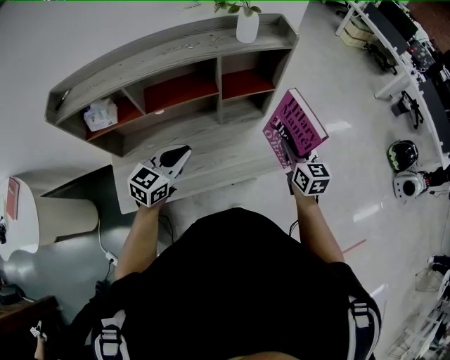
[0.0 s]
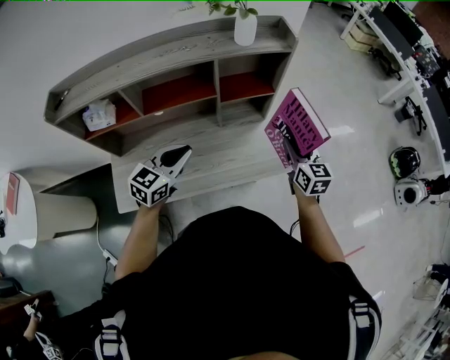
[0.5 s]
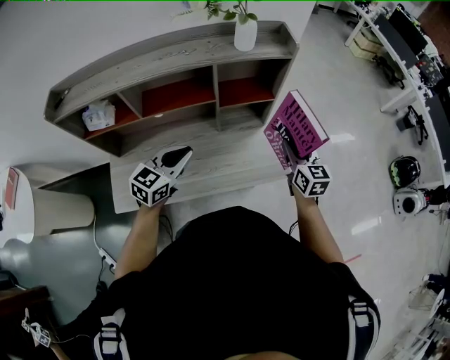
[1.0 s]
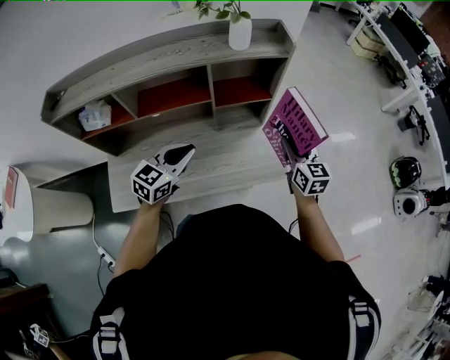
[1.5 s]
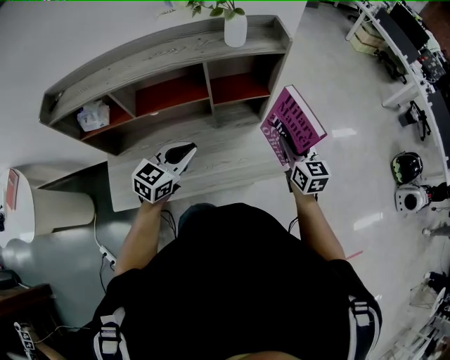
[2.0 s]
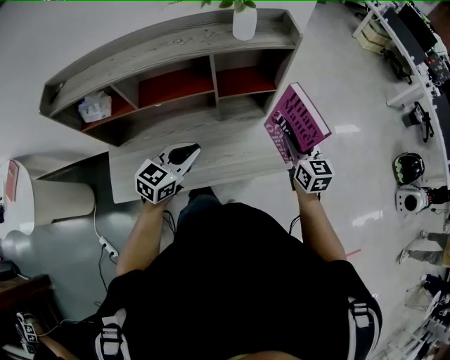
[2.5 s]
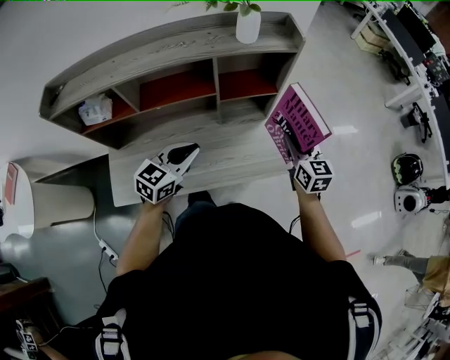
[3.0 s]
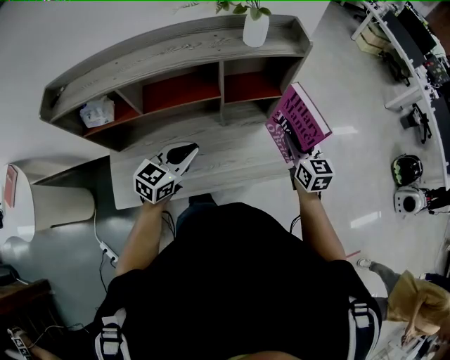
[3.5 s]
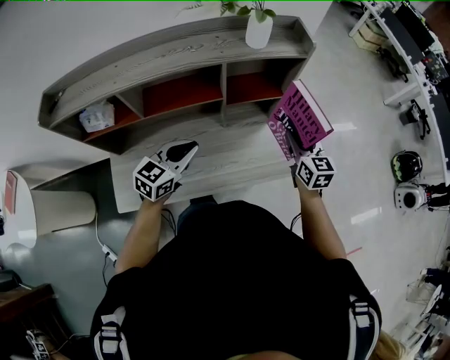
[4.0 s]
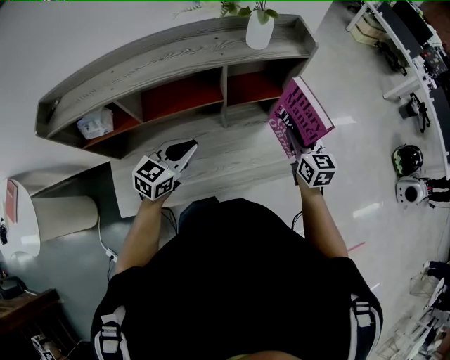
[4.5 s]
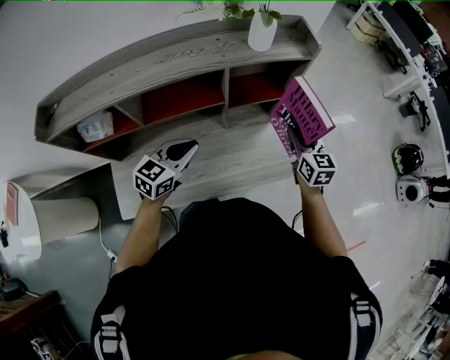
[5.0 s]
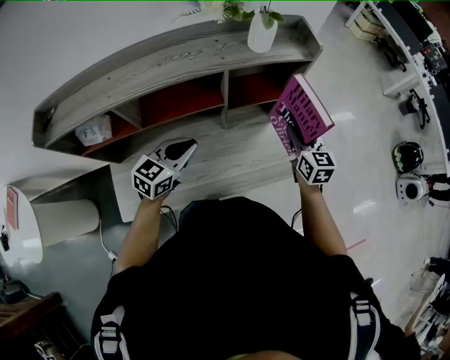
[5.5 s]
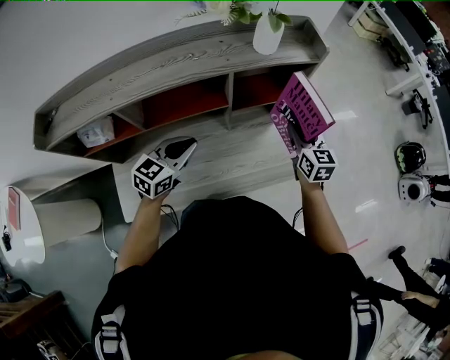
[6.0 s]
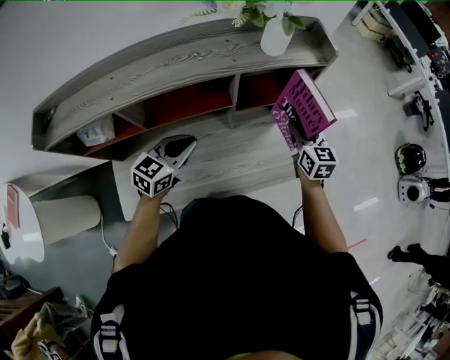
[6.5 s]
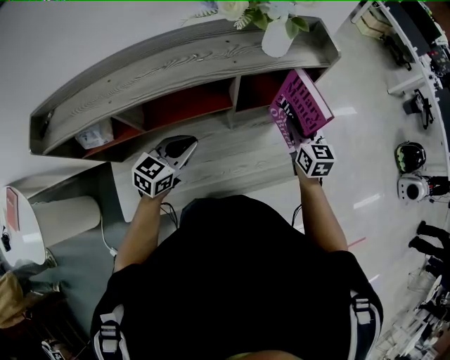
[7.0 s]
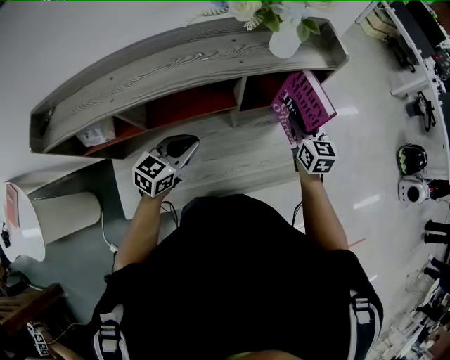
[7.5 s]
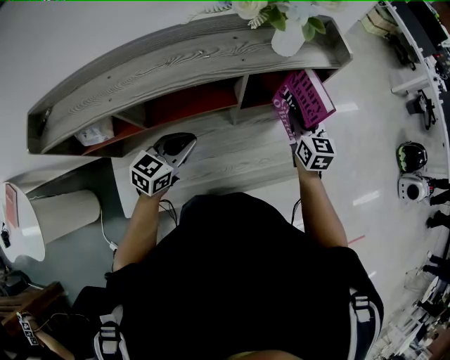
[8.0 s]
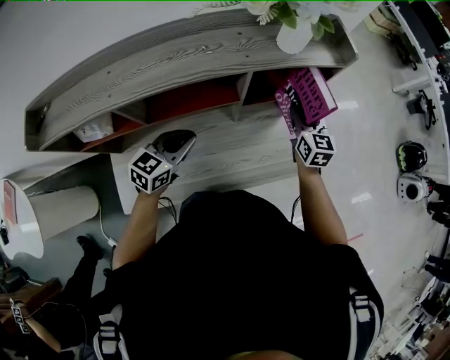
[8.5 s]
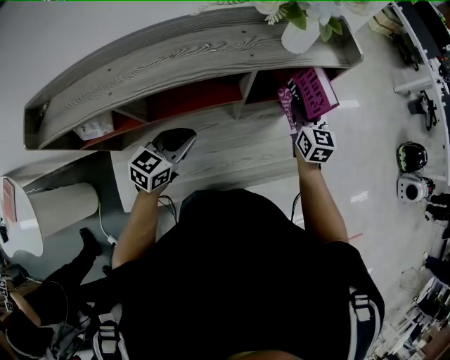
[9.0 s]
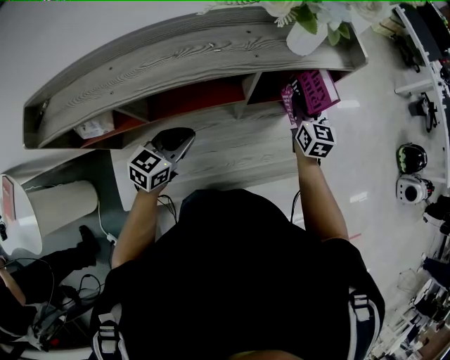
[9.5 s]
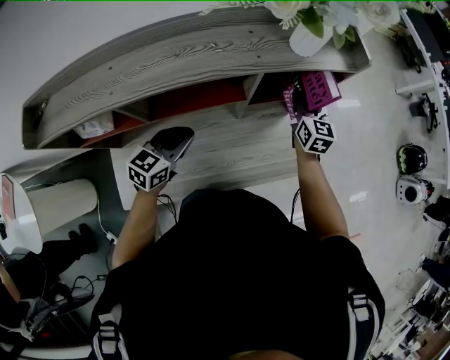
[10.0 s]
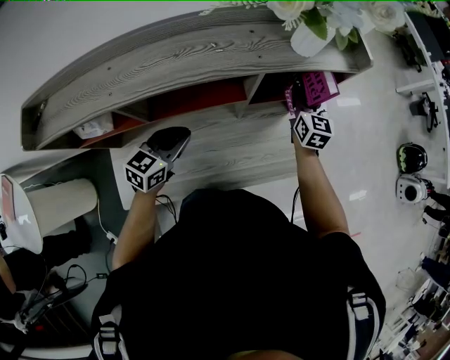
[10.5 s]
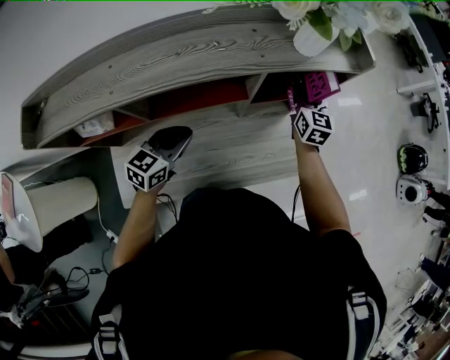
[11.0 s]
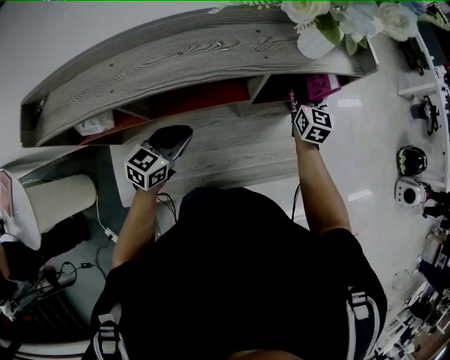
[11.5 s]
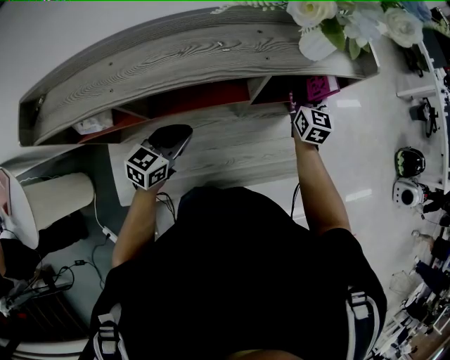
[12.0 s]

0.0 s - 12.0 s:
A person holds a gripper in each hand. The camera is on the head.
0.0 s - 2.0 s: The right gripper heads forward, covering some 5 cm; the left gripper moves to the right, roughly 5 cm.
2.0 s - 4.0 s: The left gripper is displaced to the left by roughly 5 cm.
4.0 s - 6.0 s: The right gripper shifts about 5 cm forward. The left gripper shifts by about 5 cm.
6.0 s - 8.0 s: The right gripper travels forward by approximately 5 cm.
8.0 s - 10.0 s: The right gripper moves forward, some 5 cm.
10.0 s - 12.0 s: The grippers move only a little.

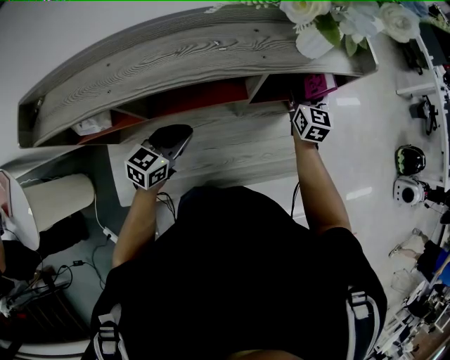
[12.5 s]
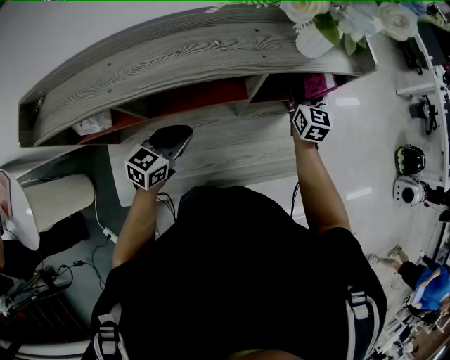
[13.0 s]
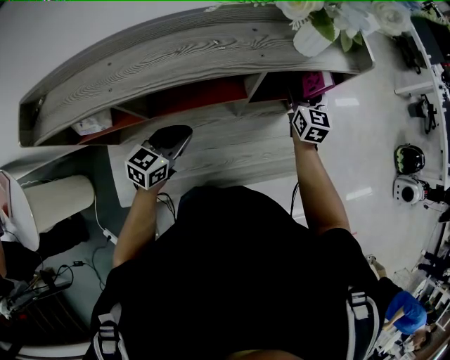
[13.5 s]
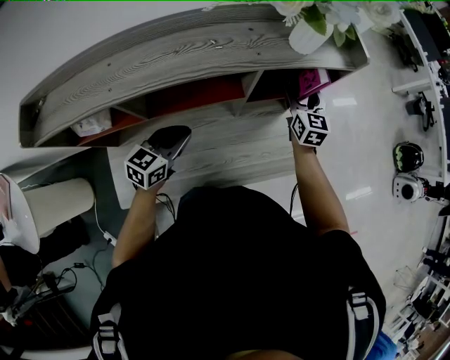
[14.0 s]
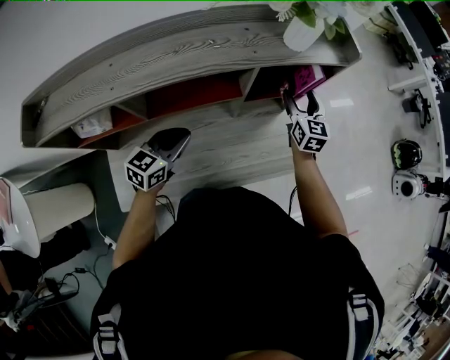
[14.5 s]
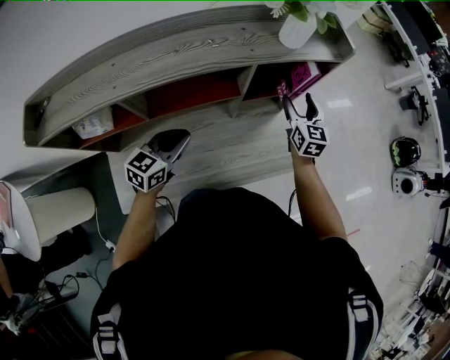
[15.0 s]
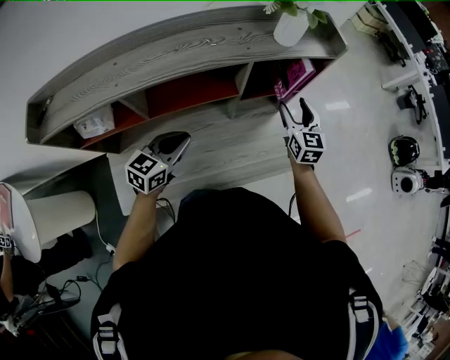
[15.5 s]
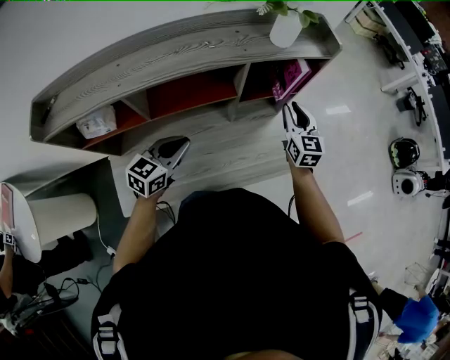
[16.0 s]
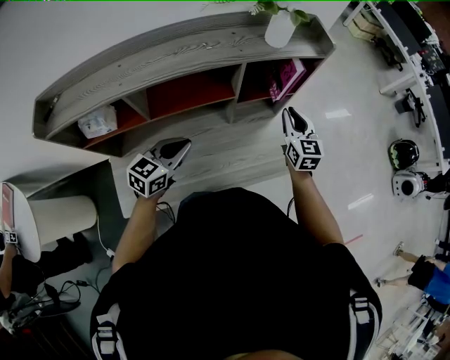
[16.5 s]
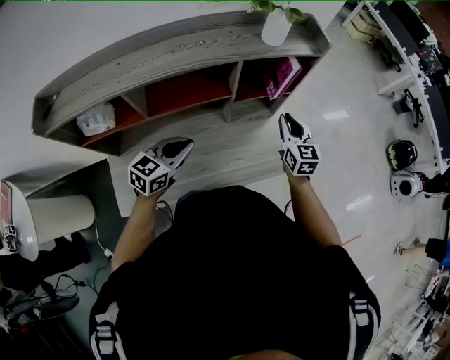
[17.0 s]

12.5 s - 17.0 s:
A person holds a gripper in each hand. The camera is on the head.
12.5 s - 14.5 s: The right gripper is displaced backward by approximately 5 cm.
14.5 s - 17.0 s: The right gripper travels backward by roughly 10 cm, and closes, while the left gripper moves roughly 5 cm.

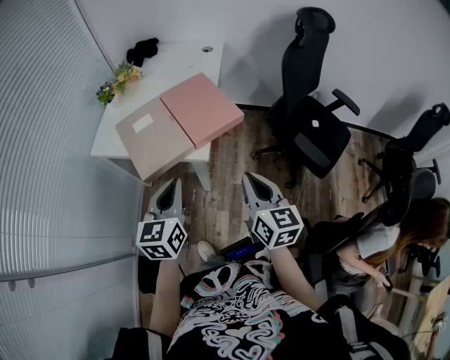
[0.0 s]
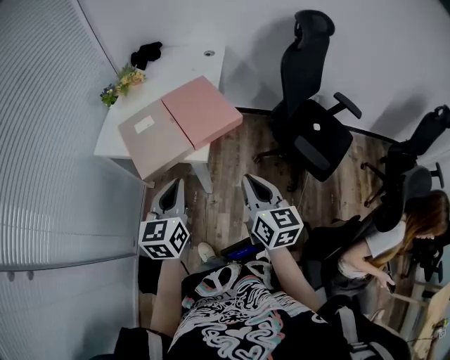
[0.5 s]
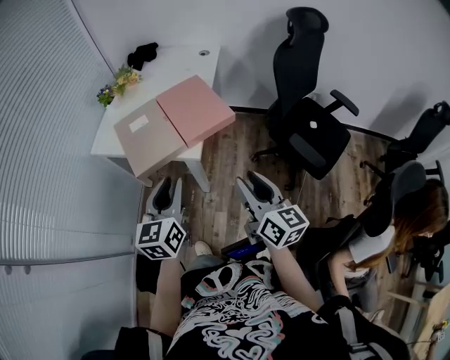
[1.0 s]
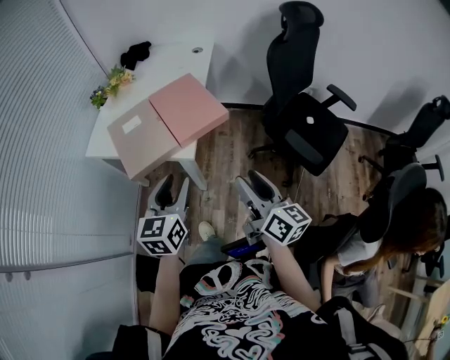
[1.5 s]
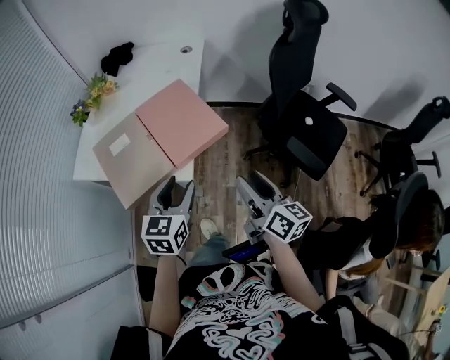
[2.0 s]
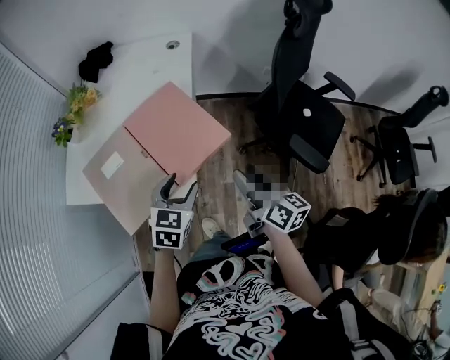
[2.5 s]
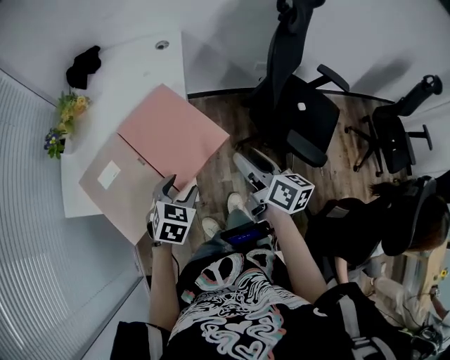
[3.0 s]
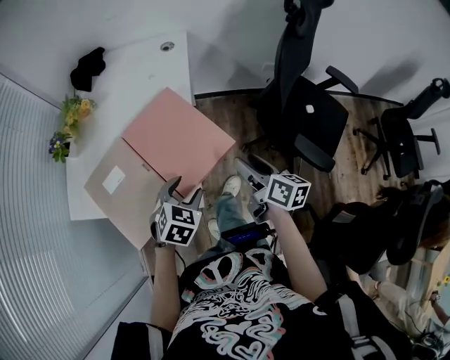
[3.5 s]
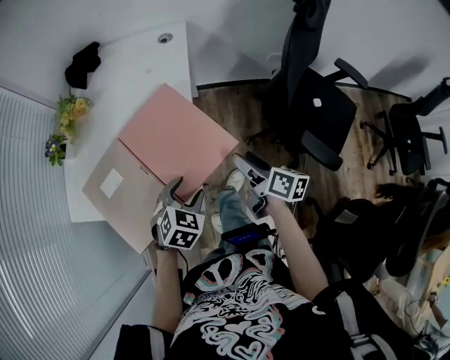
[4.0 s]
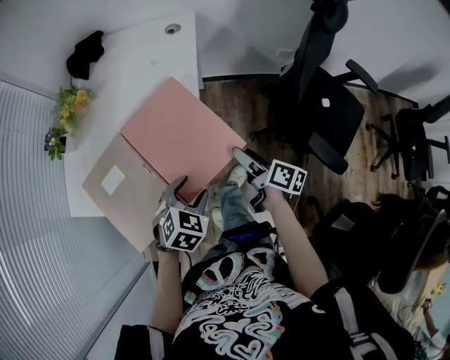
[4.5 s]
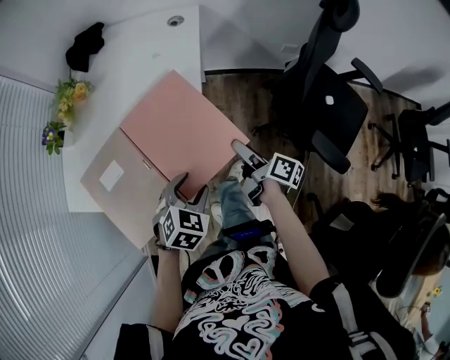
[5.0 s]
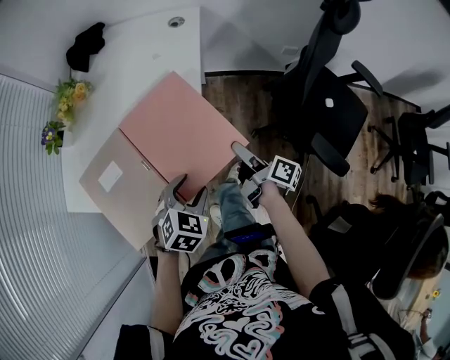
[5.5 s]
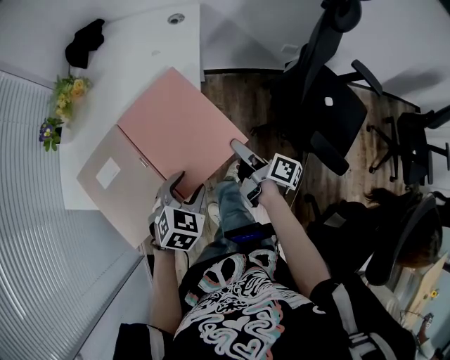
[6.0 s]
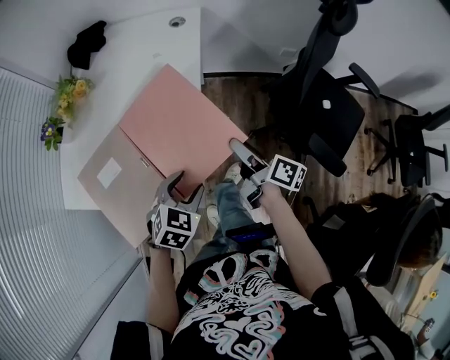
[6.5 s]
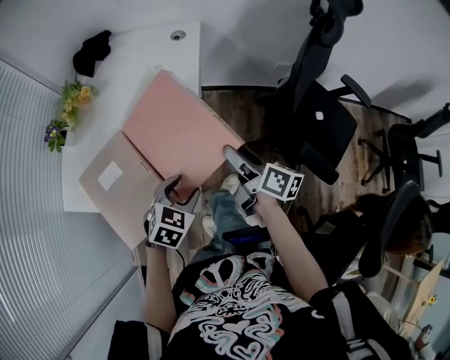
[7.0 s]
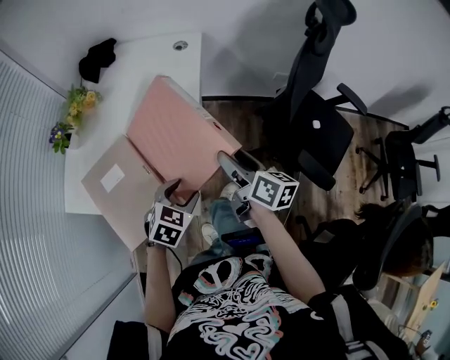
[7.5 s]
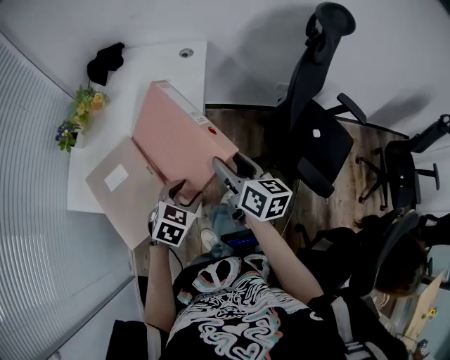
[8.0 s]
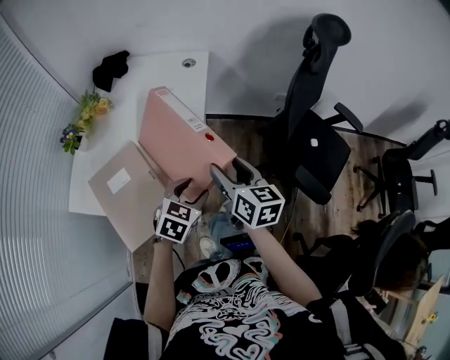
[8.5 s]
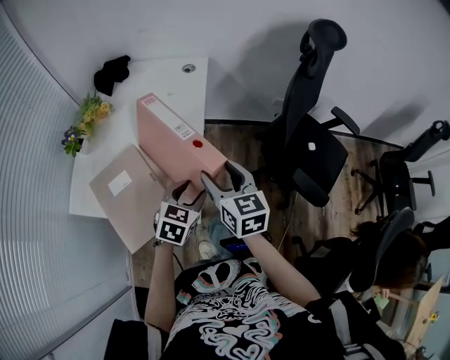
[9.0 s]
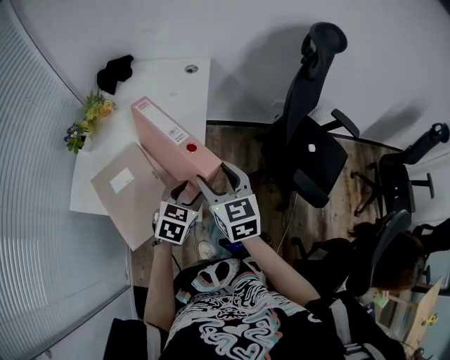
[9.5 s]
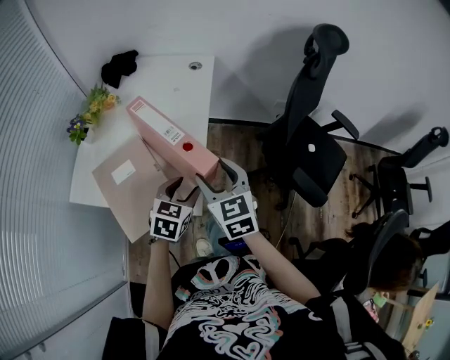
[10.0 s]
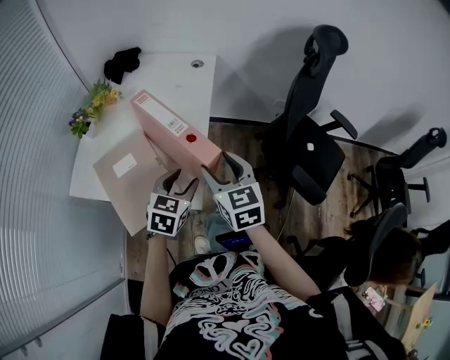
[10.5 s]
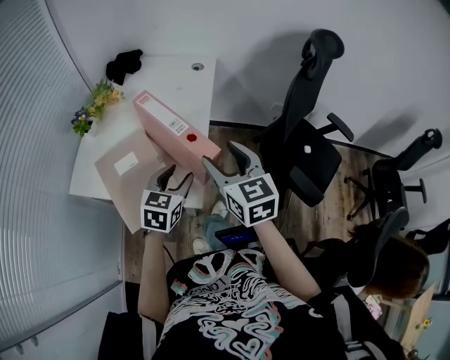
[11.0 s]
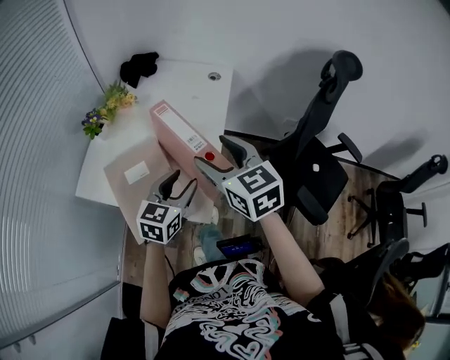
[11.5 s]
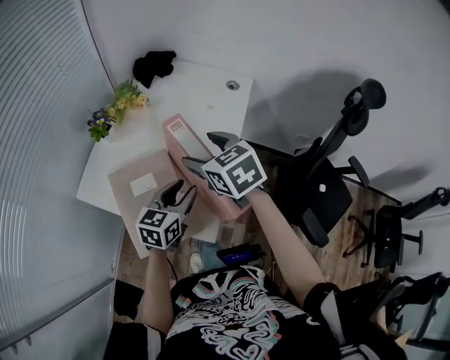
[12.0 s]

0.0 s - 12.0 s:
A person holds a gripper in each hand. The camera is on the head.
0.0 s - 2.0 s: The right gripper shifts some 10 cm to the right and forward, turns by about 30 degrees, and opens. Meanwhile the left gripper moves forward, to the right and downward, about 15 cm, and opens.
2.0 s - 4.0 s: The left gripper shifts about 20 cm downward and forward, and turns by roughly 40 degrees, while the right gripper goes about 20 cm forward and downward, and swivels some 20 degrees.
4.0 s - 6.0 s: The right gripper ends up some 5 cm from where it was, and rotates roughly 20 degrees.
6.0 s - 8.0 s: The right gripper goes some 15 cm upward, and rotates around the line of its fingers by some 40 degrees, counterclockwise from behind.
8.0 s - 10.0 s: The right gripper shifts roughly 10 cm to the left and backward, and rolls counterclockwise, seen from behind, by approximately 40 degrees.
10.0 s - 12.0 s: The right gripper travels forward and to the left by some 20 cm, and rotates approximately 30 degrees. The left gripper heads to the left and forward, covering some 10 cm, and turns by some 30 degrees.
